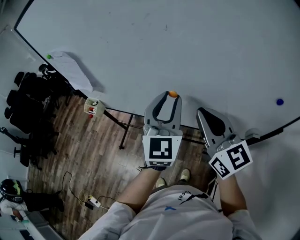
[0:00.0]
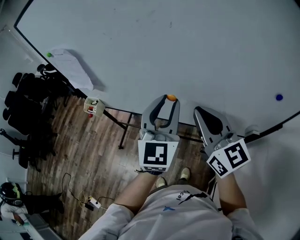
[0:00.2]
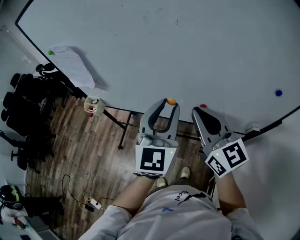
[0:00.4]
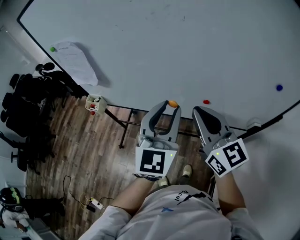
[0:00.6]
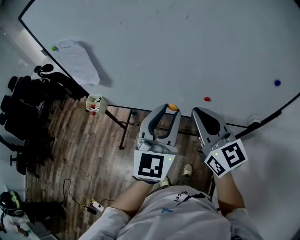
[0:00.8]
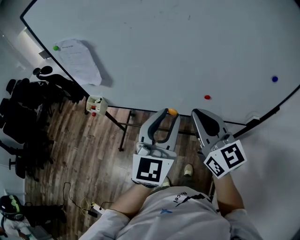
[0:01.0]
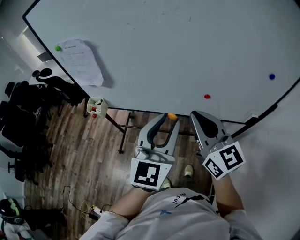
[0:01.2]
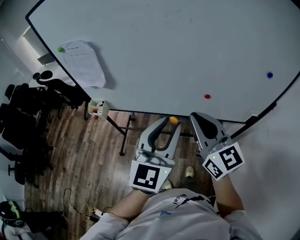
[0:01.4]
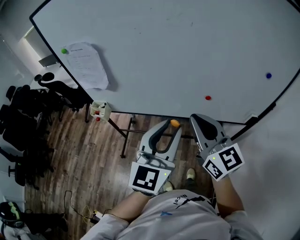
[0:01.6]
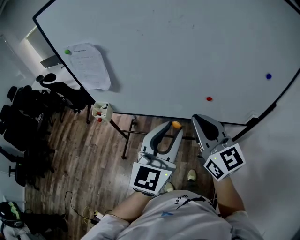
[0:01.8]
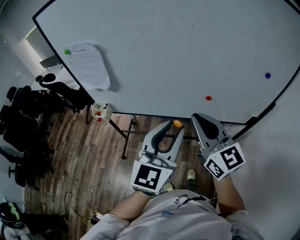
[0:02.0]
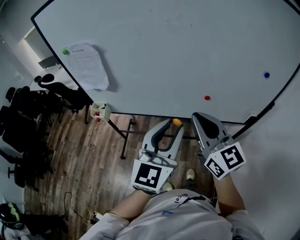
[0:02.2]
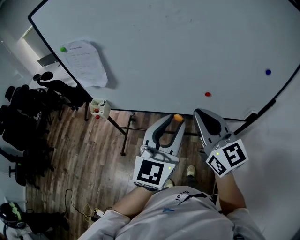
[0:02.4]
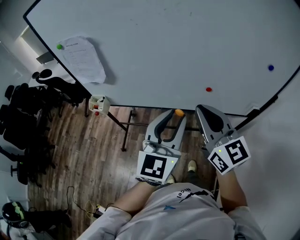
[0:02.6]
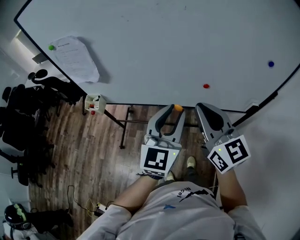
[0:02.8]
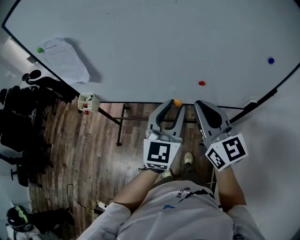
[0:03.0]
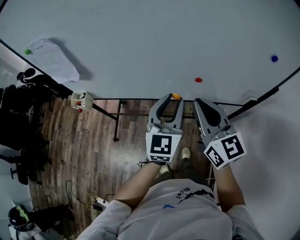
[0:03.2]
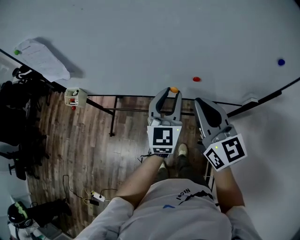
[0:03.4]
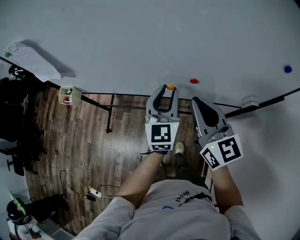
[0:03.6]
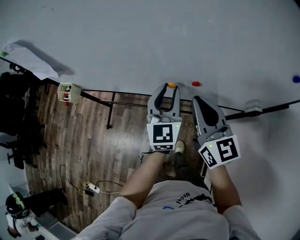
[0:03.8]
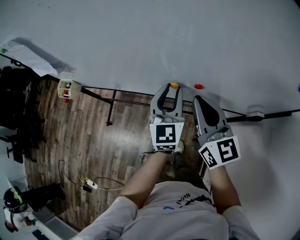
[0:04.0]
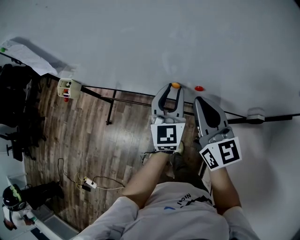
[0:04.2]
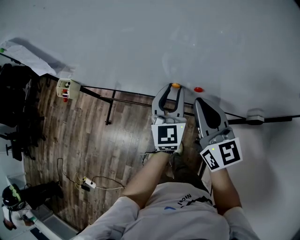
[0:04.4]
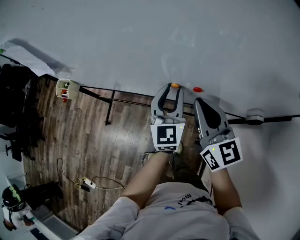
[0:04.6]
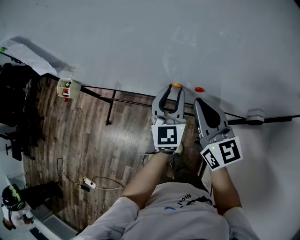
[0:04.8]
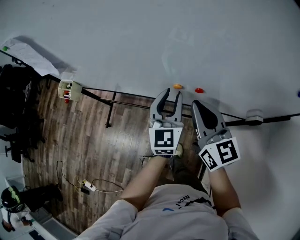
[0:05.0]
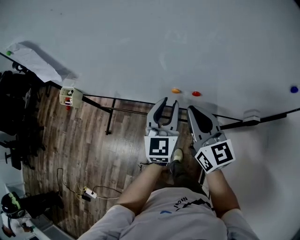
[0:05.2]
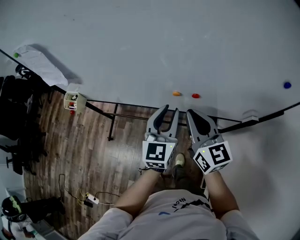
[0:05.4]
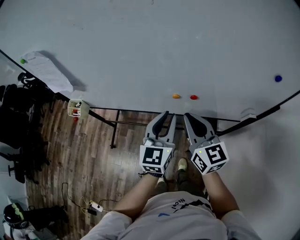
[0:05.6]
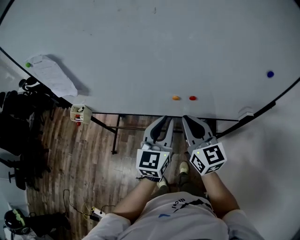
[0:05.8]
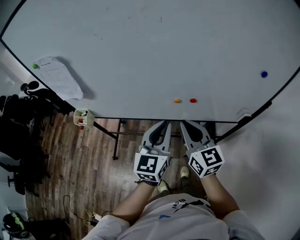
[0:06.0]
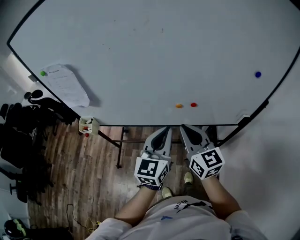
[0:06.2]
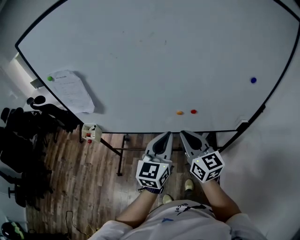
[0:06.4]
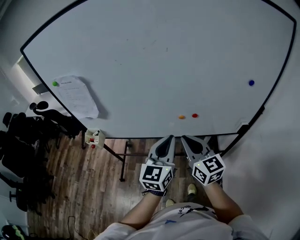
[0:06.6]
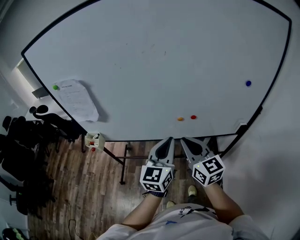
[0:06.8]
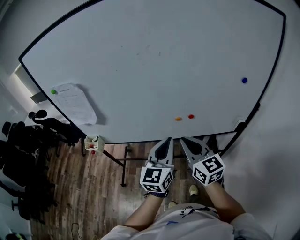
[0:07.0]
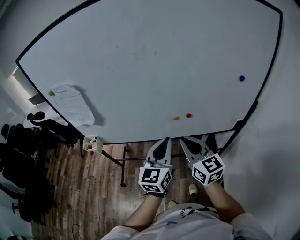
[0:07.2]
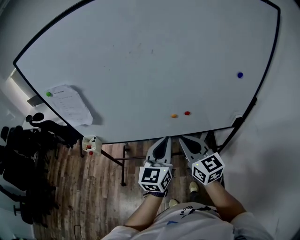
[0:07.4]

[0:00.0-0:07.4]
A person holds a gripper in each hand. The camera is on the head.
0:00.0 to 0:01.4: The left gripper shifts some 20 cm backward and to the left. Meanwhile the right gripper is displaced to the left and backward by about 15 cm.
0:01.4 to 0:03.0: The left gripper shifts approximately 10 cm downward, forward and to the right, while the right gripper shifts by some 5 cm.
0:03.0 to 0:04.4: The left gripper is displaced forward, downward and to the right by some 20 cm. Meanwhile the right gripper heads downward, forward and to the right, covering approximately 20 cm.
0:04.4 to 0:06.0: The right gripper goes approximately 10 cm backward and to the left, while the left gripper goes roughly 15 cm backward, upward and to the left.
0:06.0 to 0:07.4: The left gripper shifts by approximately 5 cm; the right gripper heads backward, covering approximately 5 cm.

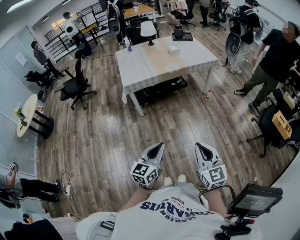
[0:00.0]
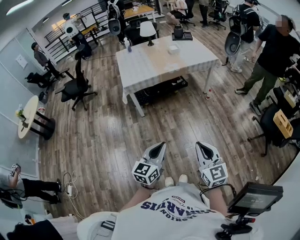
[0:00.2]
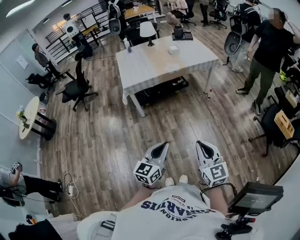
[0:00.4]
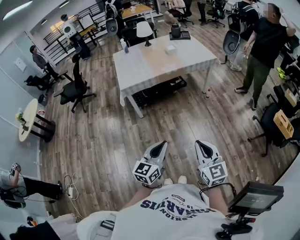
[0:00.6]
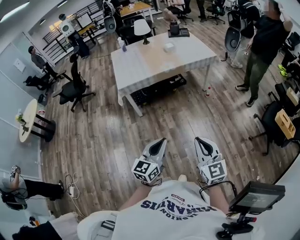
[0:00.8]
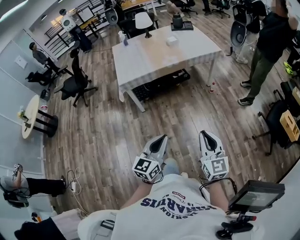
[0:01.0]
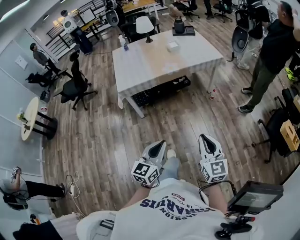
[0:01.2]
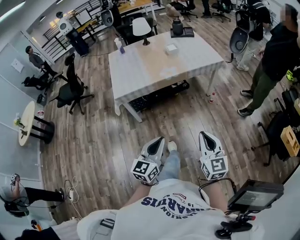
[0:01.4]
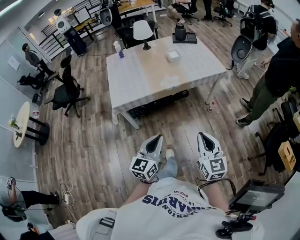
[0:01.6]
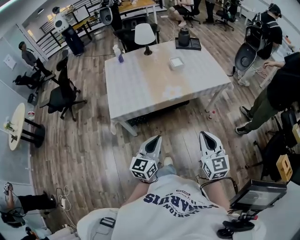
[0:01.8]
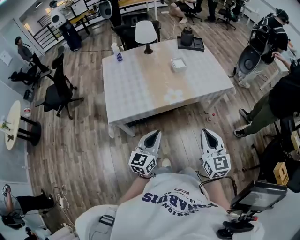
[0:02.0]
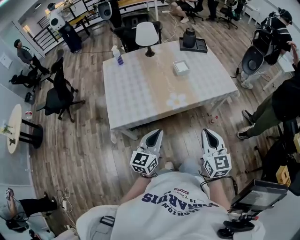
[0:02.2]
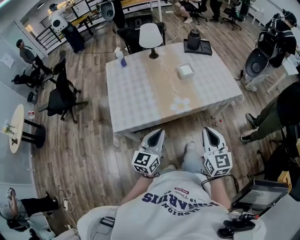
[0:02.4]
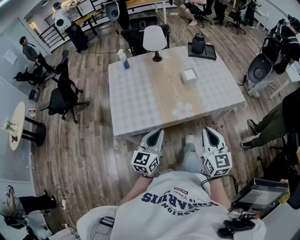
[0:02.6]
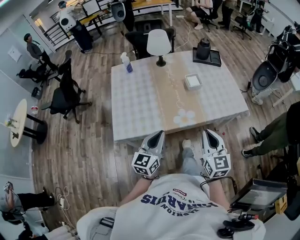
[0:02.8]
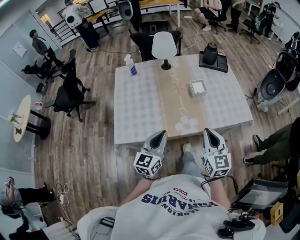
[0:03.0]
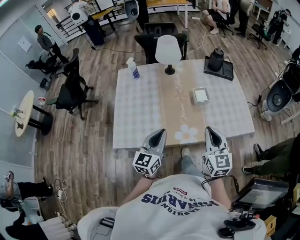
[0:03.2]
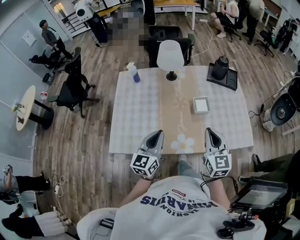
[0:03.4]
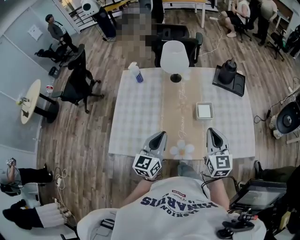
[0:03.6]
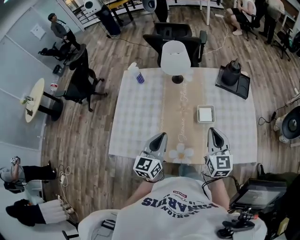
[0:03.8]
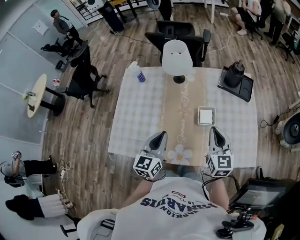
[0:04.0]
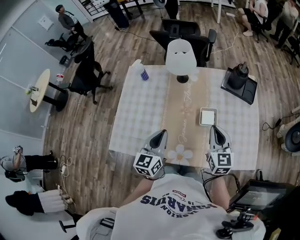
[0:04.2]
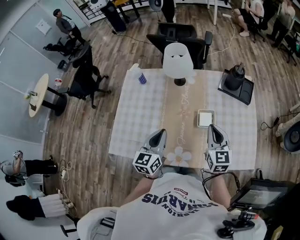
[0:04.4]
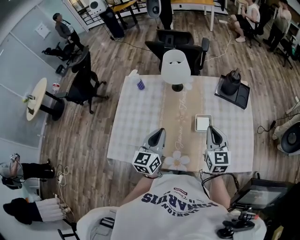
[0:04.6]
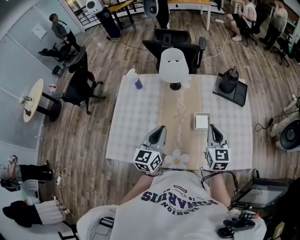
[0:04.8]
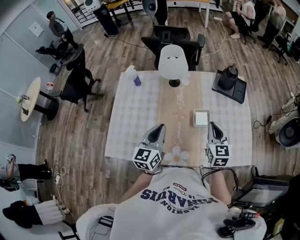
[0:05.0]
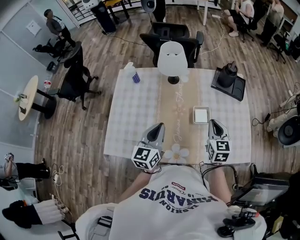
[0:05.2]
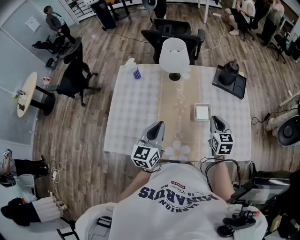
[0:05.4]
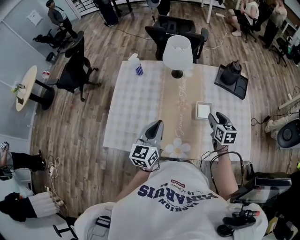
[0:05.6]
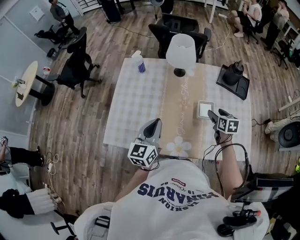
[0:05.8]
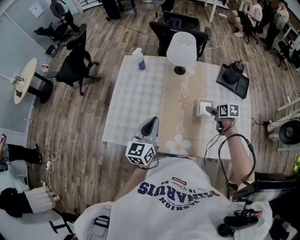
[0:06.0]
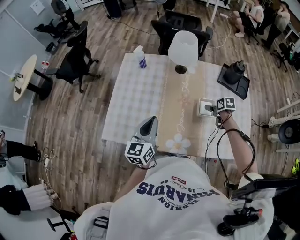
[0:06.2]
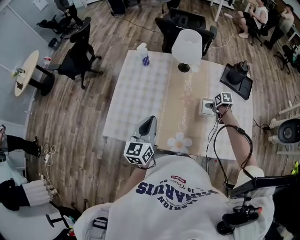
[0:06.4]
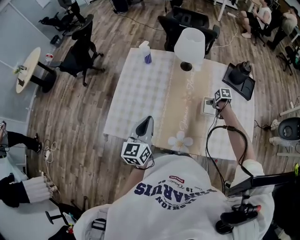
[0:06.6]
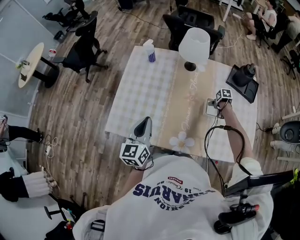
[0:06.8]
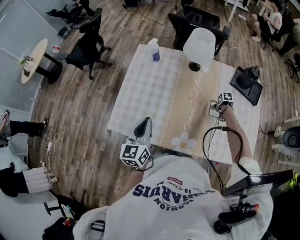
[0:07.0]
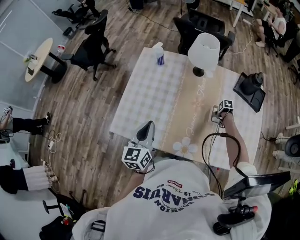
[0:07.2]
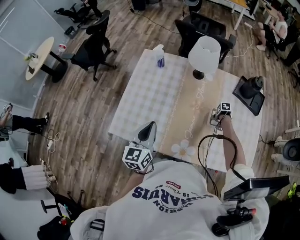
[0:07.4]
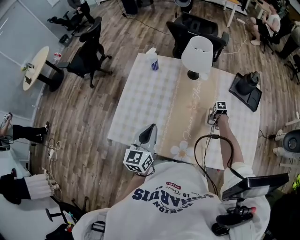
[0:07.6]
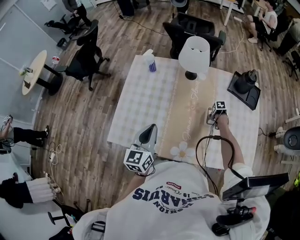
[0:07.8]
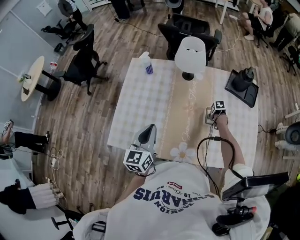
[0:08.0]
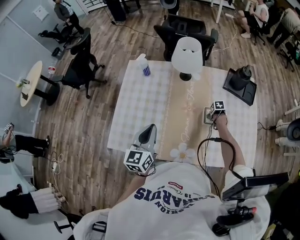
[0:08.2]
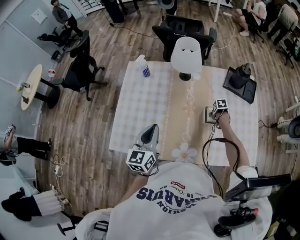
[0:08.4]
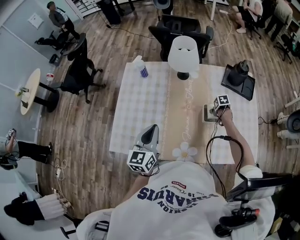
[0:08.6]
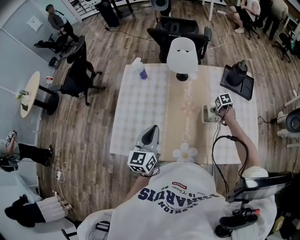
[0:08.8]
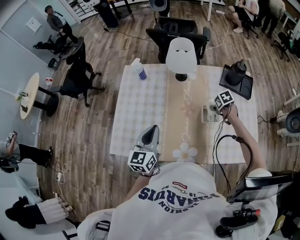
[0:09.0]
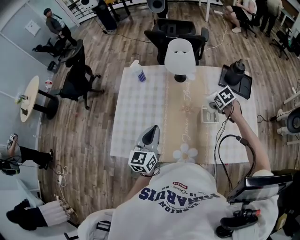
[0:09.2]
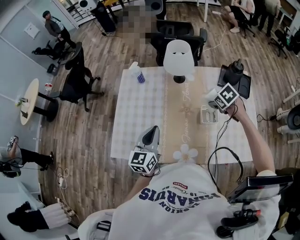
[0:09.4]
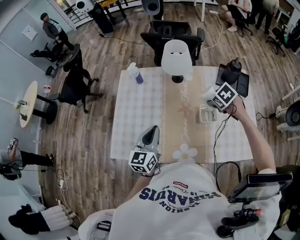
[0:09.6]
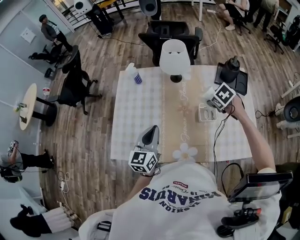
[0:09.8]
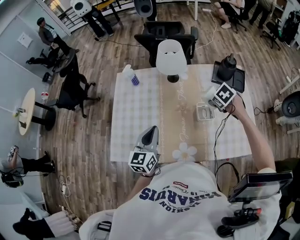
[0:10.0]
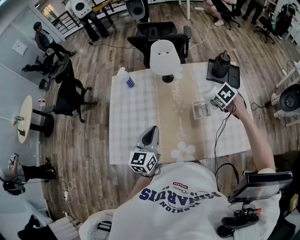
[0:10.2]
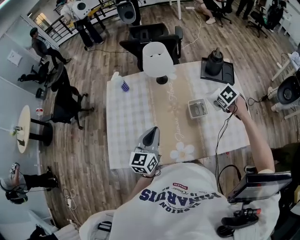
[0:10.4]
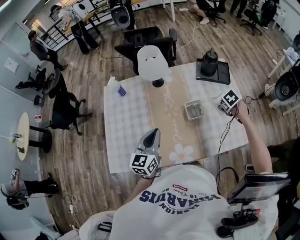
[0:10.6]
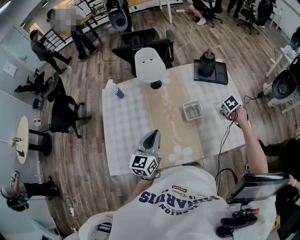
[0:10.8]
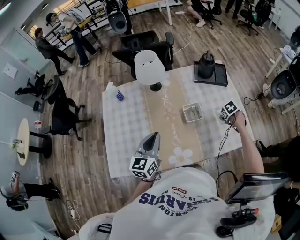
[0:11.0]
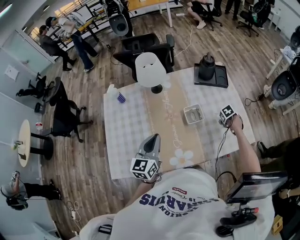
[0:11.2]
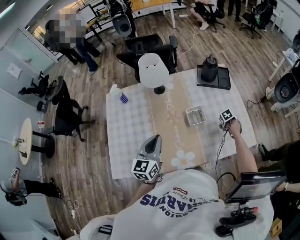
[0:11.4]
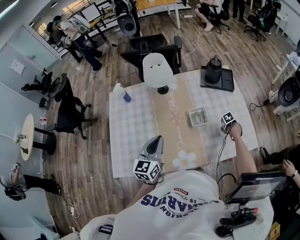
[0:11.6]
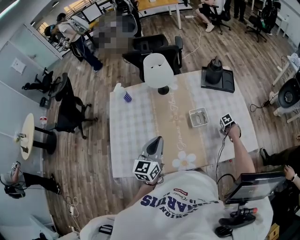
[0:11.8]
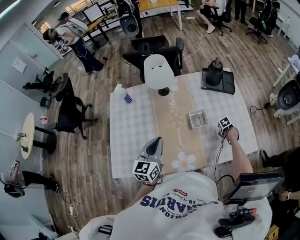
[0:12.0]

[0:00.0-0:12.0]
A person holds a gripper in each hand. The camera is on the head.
0:00.0 to 0:01.6: The two grippers go some 35 cm forward.
0:01.6 to 0:03.0: The pair of grippers is taken forward, approximately 40 cm.
0:03.0 to 0:04.4: Both grippers travel together forward, some 30 cm. The left gripper turns by roughly 20 degrees.
0:04.4 to 0:06.0: The right gripper goes approximately 20 cm downward and forward, tips its fingers downward by about 40 degrees, and opens its fingers. Meanwhile the left gripper is displaced to the left by approximately 10 cm.
0:06.0 to 0:07.6: The right gripper shifts some 20 cm downward, and points its fingers about 30 degrees further downward.
0:07.6 to 0:09.0: The right gripper heads upward, covering approximately 15 cm, and turns by approximately 20 degrees.
0:09.0 to 0:10.4: The left gripper shifts about 5 cm to the right. The right gripper is displaced upward, to the right and backward by roughly 15 cm.
0:10.4 to 0:12.0: The right gripper is displaced downward by about 25 cm, and turns by some 30 degrees.

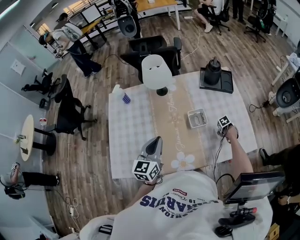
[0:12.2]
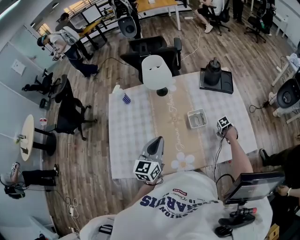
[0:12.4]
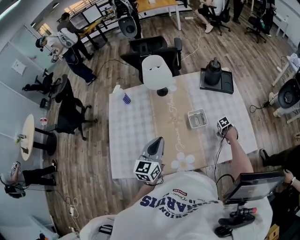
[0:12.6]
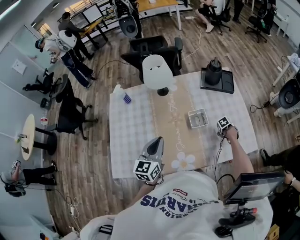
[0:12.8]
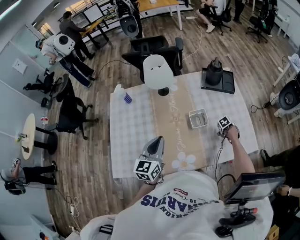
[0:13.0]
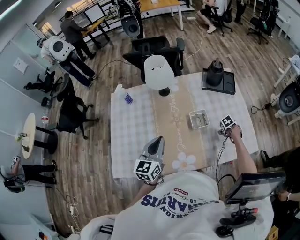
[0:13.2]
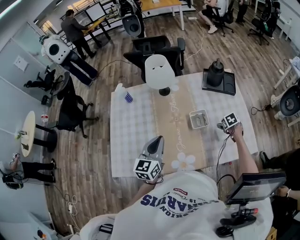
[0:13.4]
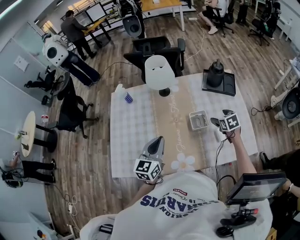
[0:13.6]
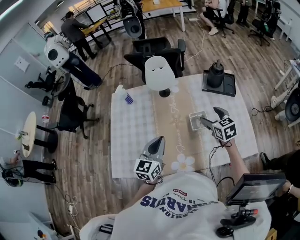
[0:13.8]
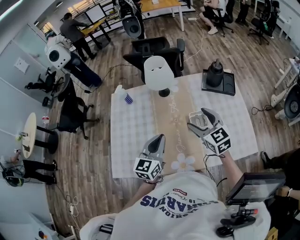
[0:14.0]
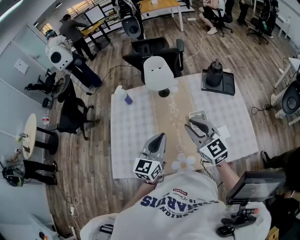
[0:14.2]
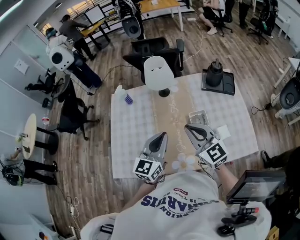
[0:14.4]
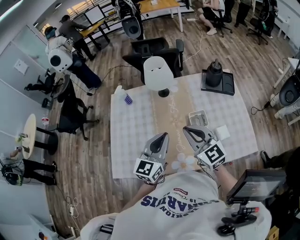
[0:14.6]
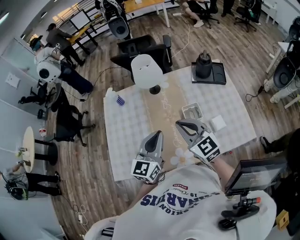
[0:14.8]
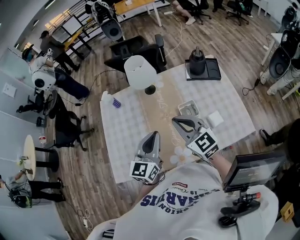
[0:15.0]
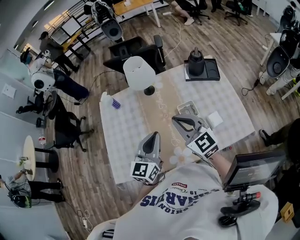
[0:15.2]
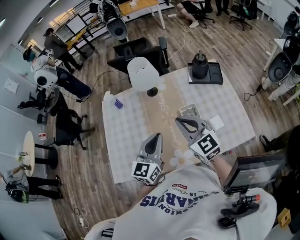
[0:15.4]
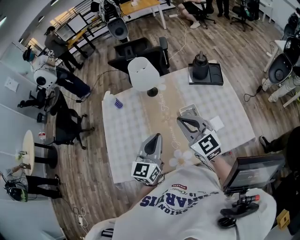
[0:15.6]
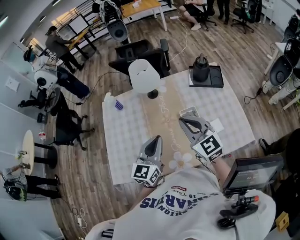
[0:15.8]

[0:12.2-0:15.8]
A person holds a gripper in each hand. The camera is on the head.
0:12.2 to 0:14.0: The right gripper heads upward, covering some 40 cm, and angles its fingers upward, by about 70 degrees.
0:14.0 to 0:15.8: The right gripper heads upward, covering about 5 cm, and closes, while the left gripper ends up some 5 cm from where it was.
